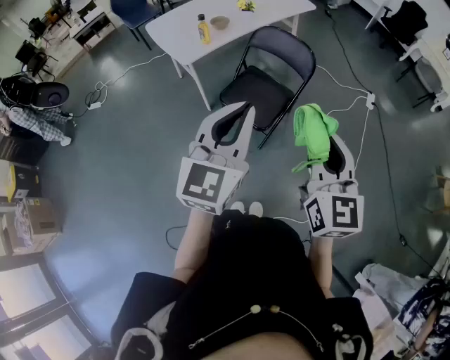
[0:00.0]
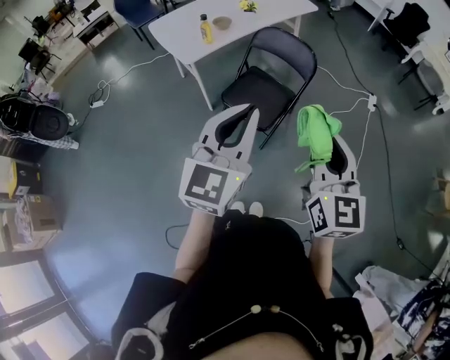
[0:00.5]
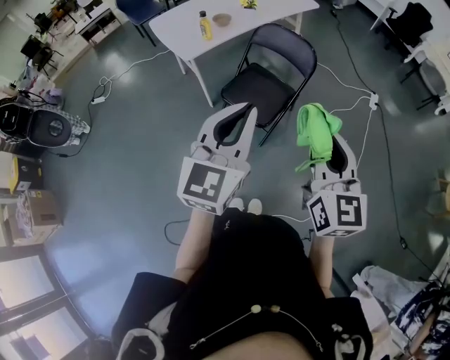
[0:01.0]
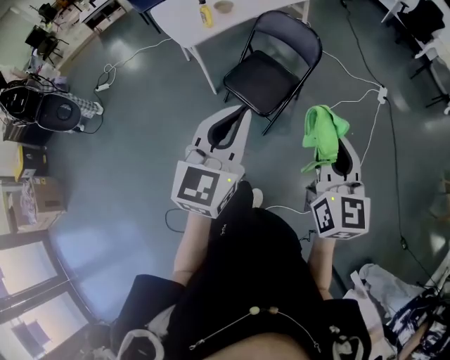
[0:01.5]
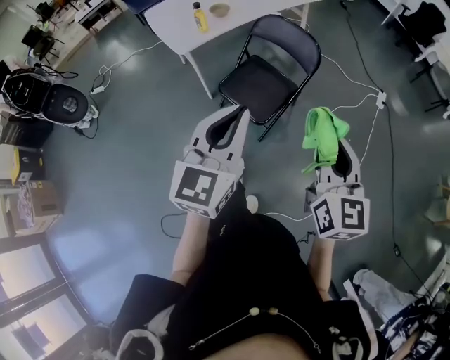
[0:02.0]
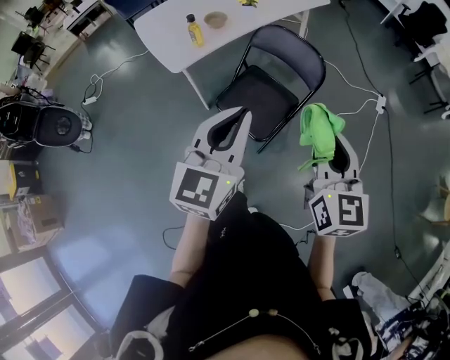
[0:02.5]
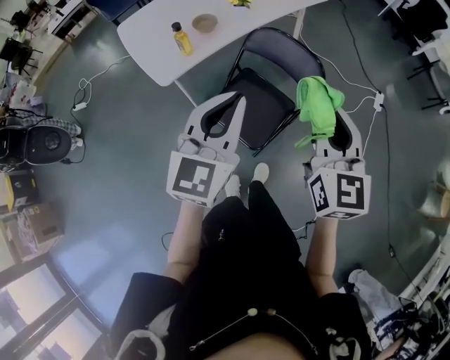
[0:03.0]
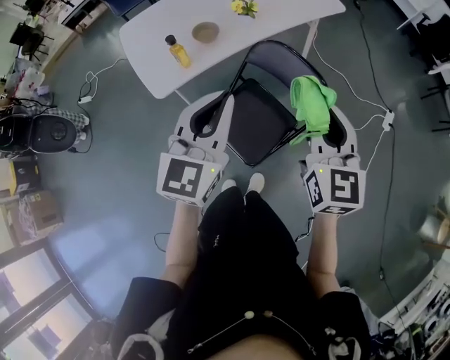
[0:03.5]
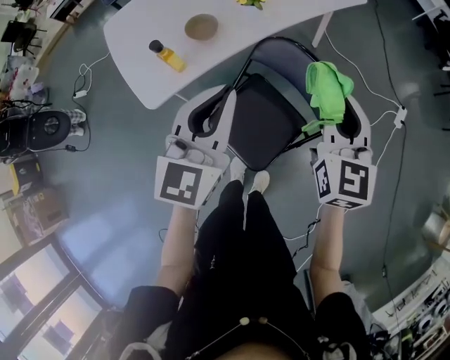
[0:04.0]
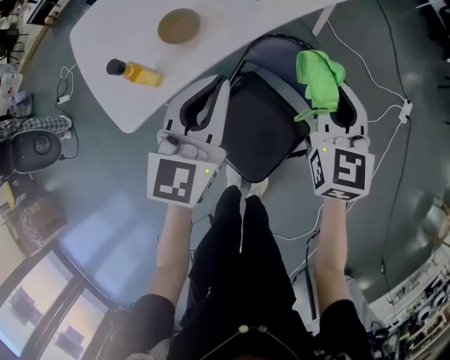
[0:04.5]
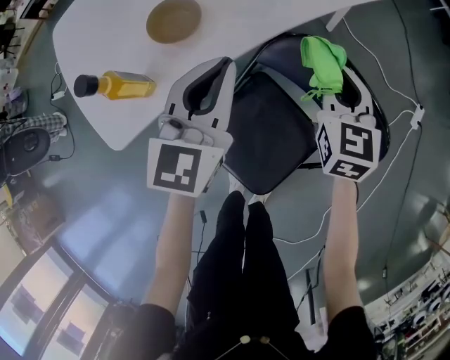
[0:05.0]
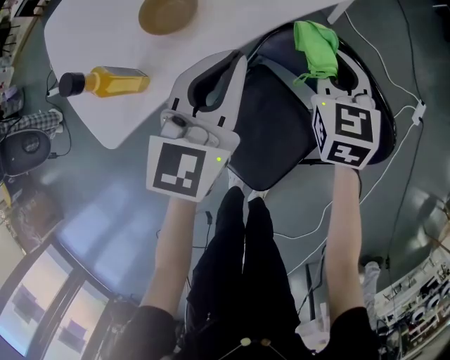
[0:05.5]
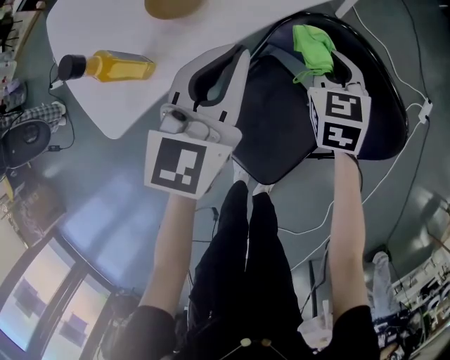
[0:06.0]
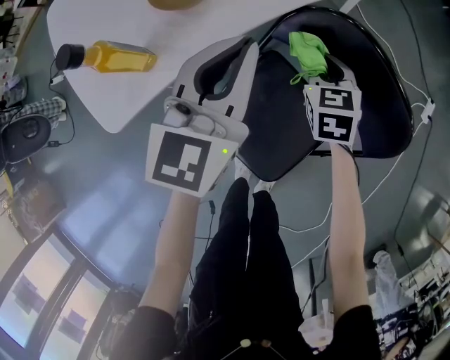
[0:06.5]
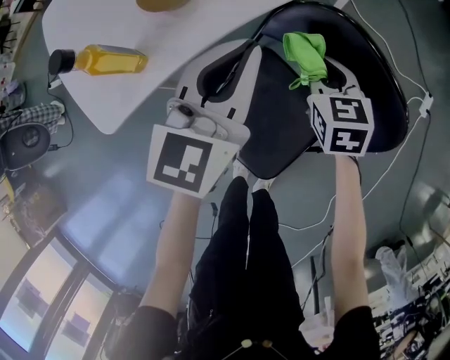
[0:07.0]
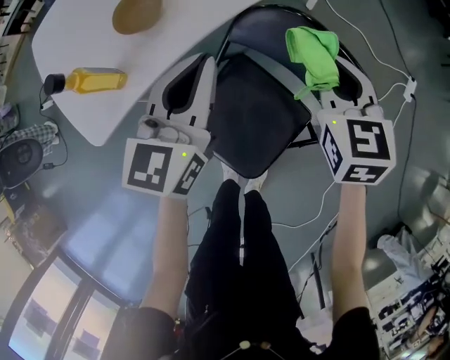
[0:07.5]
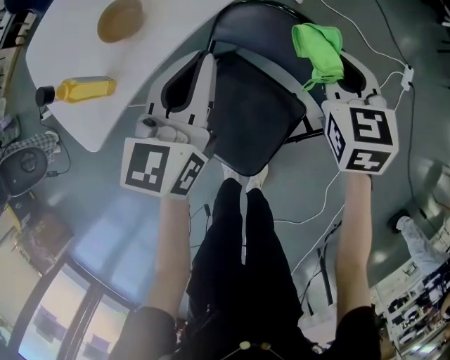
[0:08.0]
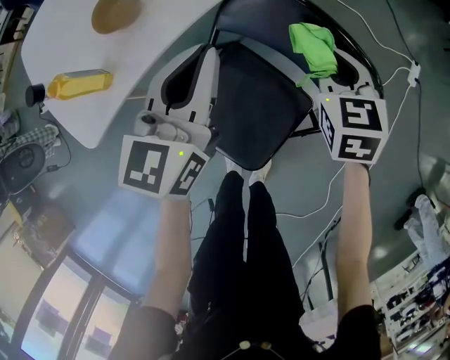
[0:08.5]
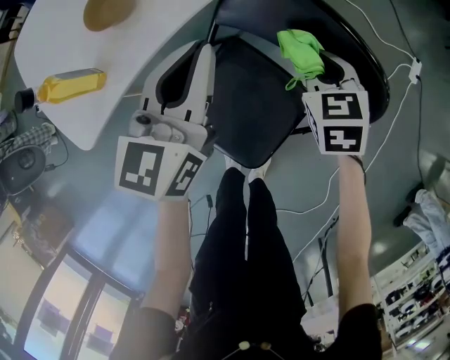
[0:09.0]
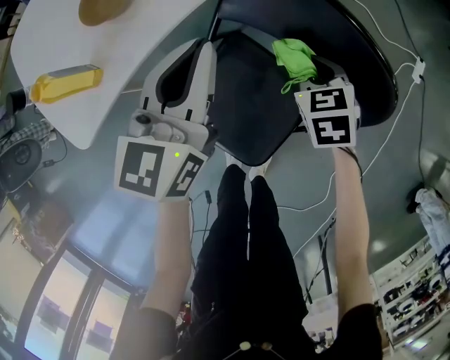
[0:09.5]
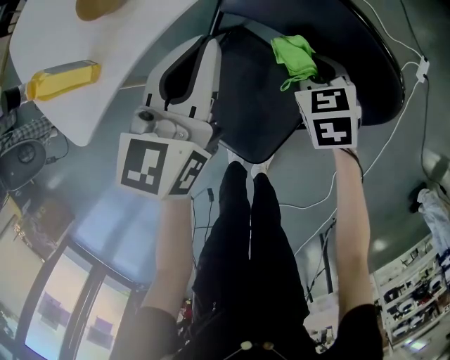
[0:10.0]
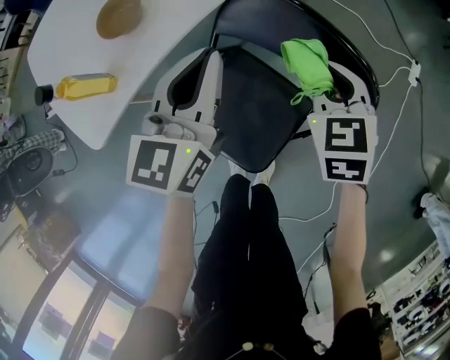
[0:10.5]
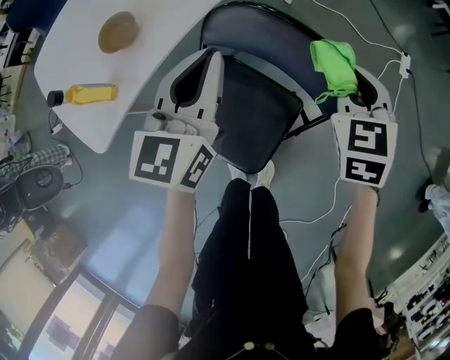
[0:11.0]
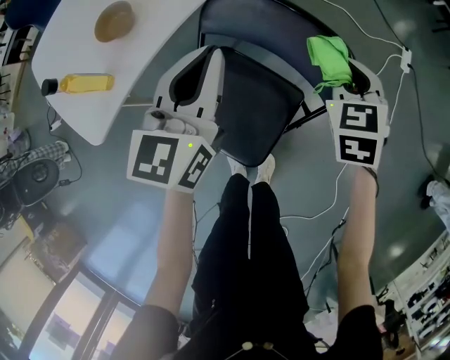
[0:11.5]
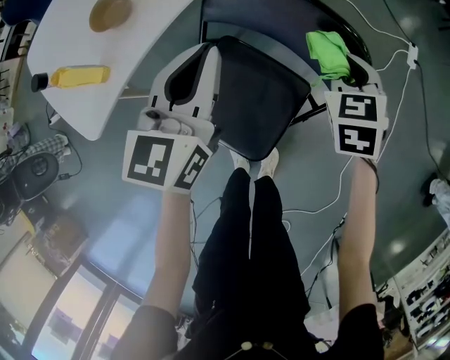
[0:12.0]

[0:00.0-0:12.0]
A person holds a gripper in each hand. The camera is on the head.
0:00.0 to 0:02.0: The left gripper changes place by about 5 cm. The right gripper travels to the right and forward by some 10 cm.
0:02.0 to 0:04.0: The two grippers travel together, forward, some 50 cm.
0:04.0 to 0:06.0: Both grippers move downward and forward, approximately 30 cm. The right gripper rotates about 30 degrees.
0:06.0 to 0:08.0: The left gripper is displaced to the right by some 5 cm. Meanwhile the right gripper shifts roughly 15 cm to the right and upward.
0:08.0 to 0:10.0: The right gripper goes roughly 15 cm downward, and rotates some 20 degrees.
0:10.0 to 0:12.0: The right gripper goes some 15 cm to the right and upward, while the left gripper travels to the right by some 5 cm.

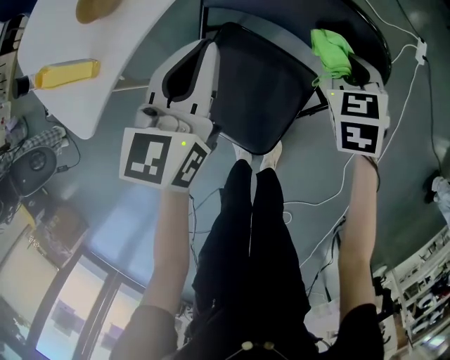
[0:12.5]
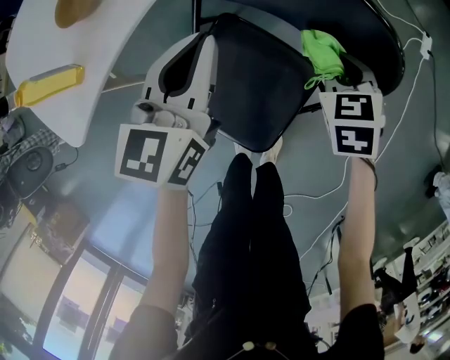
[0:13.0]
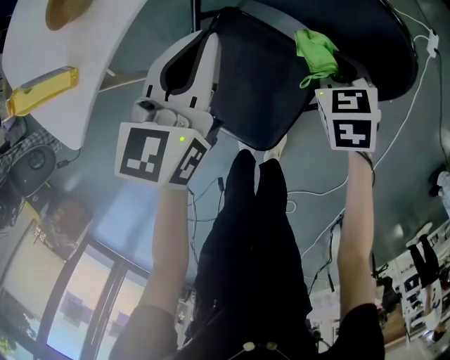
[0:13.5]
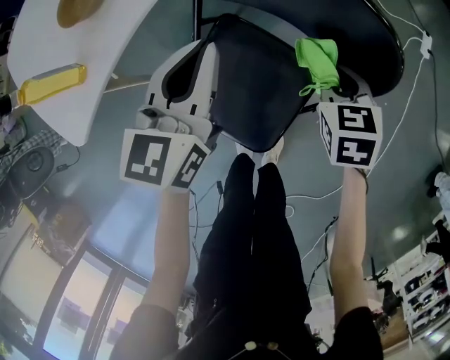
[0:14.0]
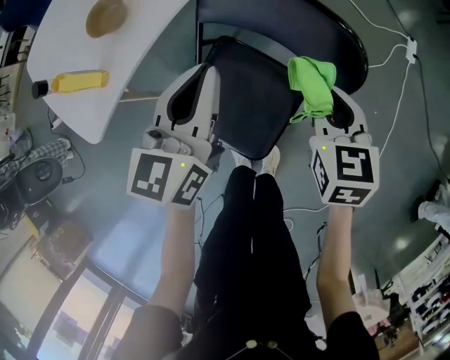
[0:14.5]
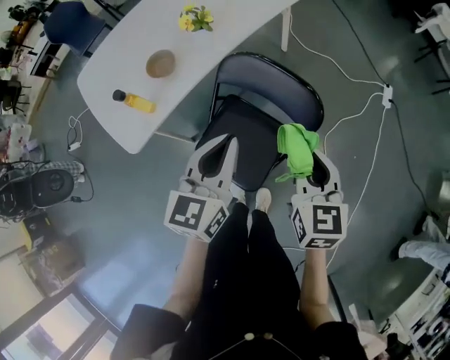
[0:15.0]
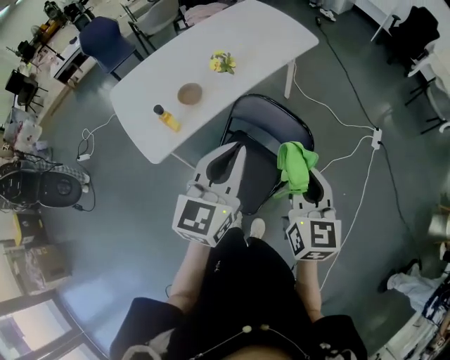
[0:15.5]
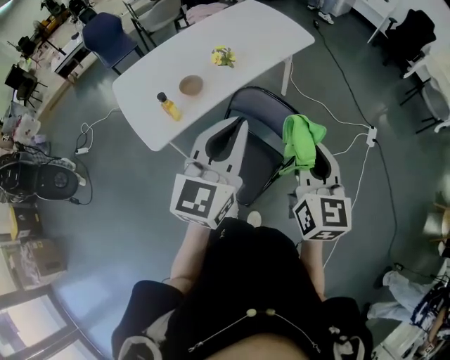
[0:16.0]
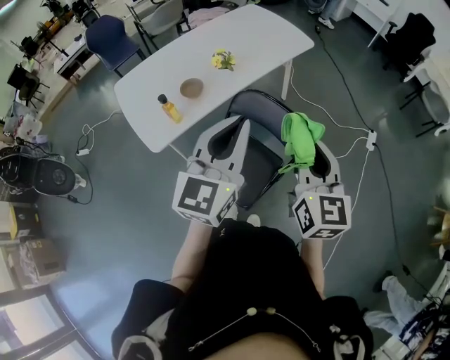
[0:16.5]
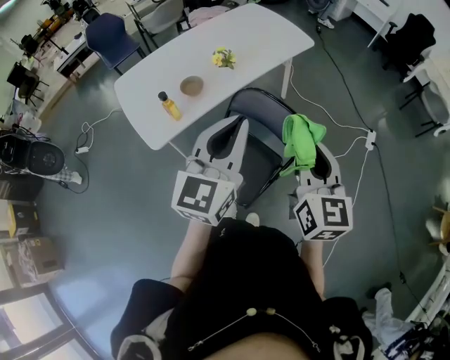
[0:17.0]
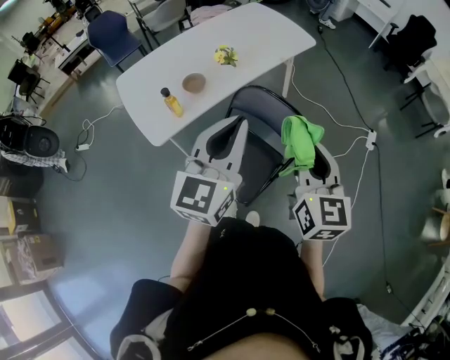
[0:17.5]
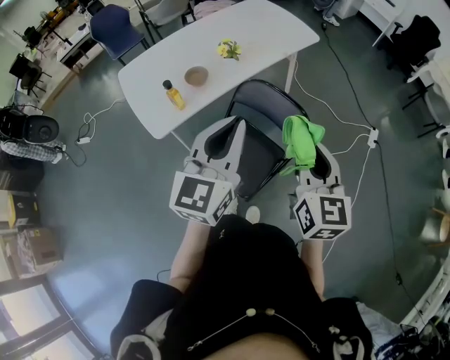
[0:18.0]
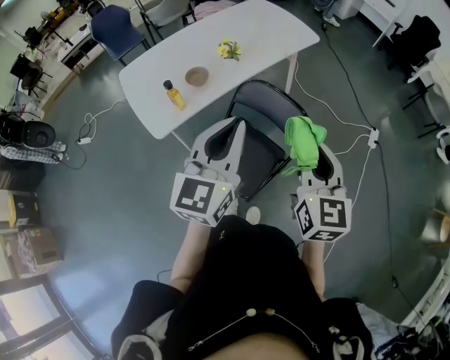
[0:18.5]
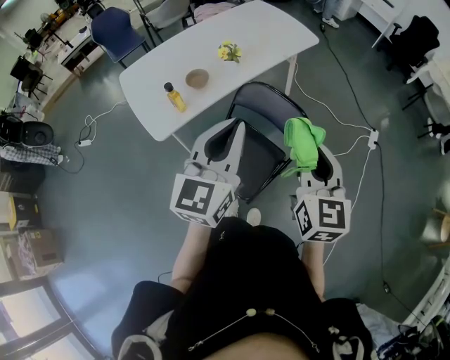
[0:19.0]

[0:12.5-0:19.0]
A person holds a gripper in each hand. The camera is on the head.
0:12.5 to 0:14.5: The right gripper heads upward and backward, covering about 10 cm, and swivels some 20 degrees.
0:14.5 to 0:17.0: The grippers both shift upward by roughly 35 cm. The left gripper turns by approximately 20 degrees, while the right gripper points its fingers roughly 30 degrees further upward.
0:17.0 to 0:19.0: There are only small adjustments of the grippers.

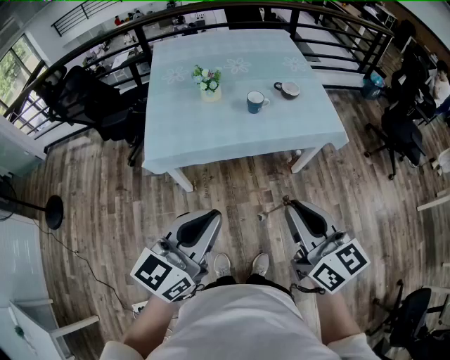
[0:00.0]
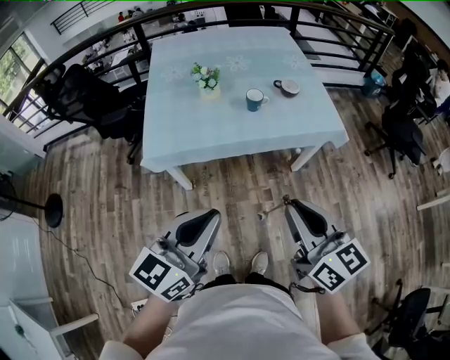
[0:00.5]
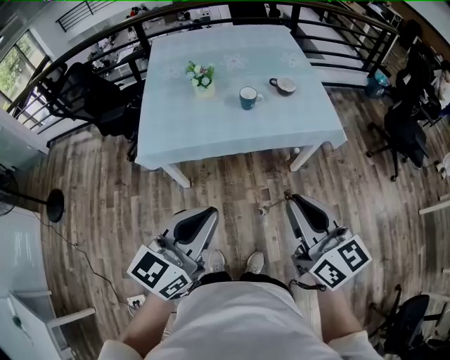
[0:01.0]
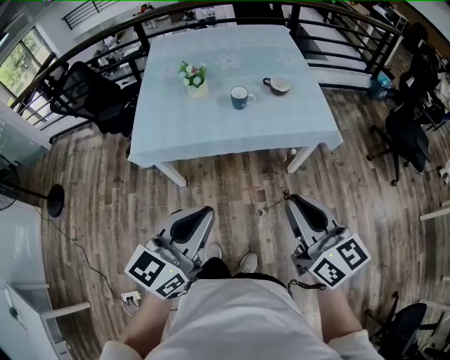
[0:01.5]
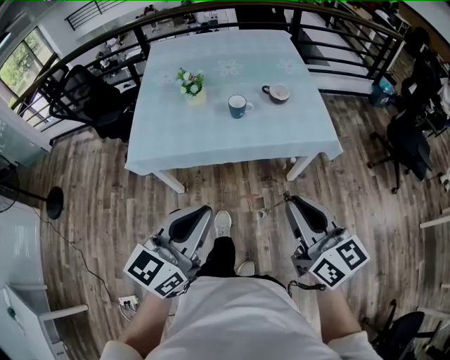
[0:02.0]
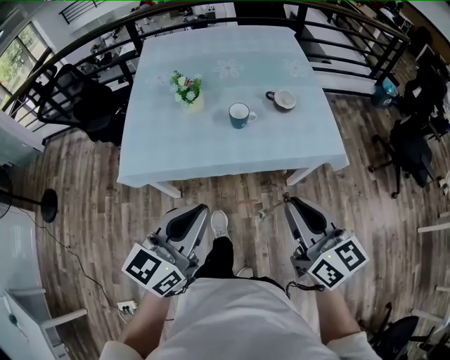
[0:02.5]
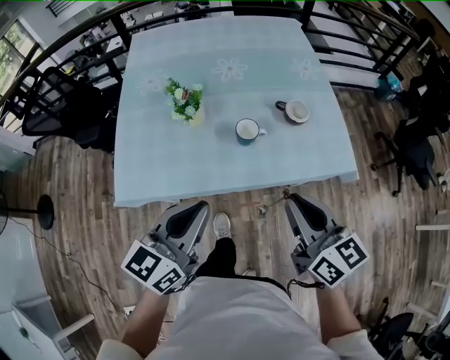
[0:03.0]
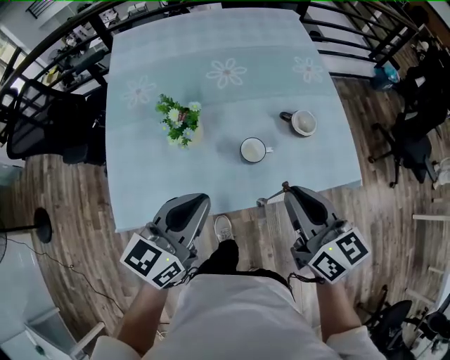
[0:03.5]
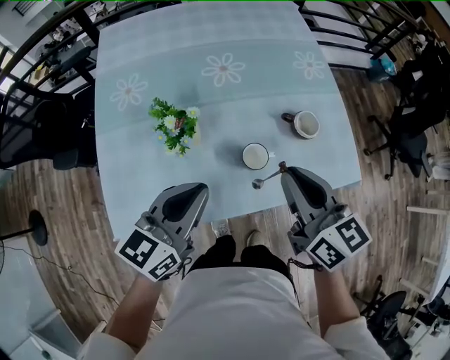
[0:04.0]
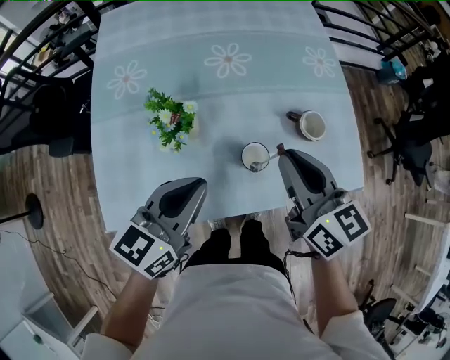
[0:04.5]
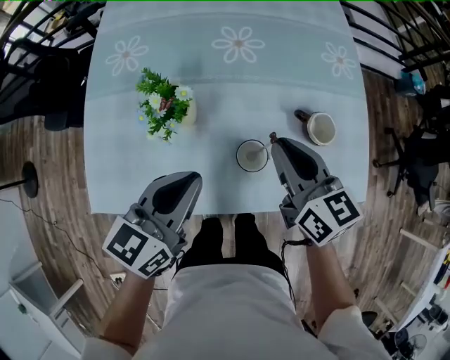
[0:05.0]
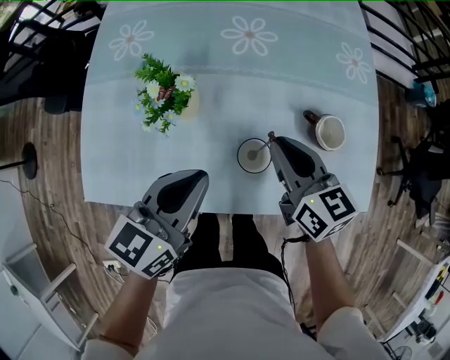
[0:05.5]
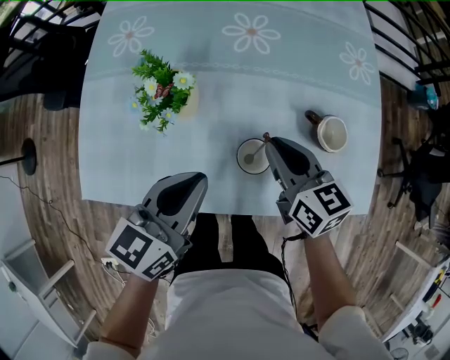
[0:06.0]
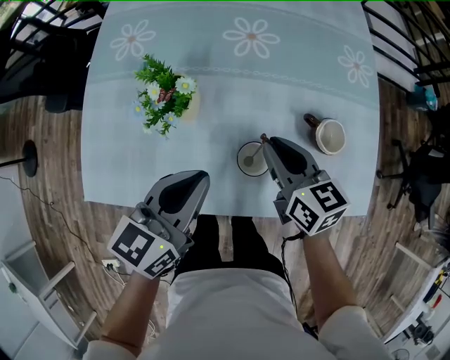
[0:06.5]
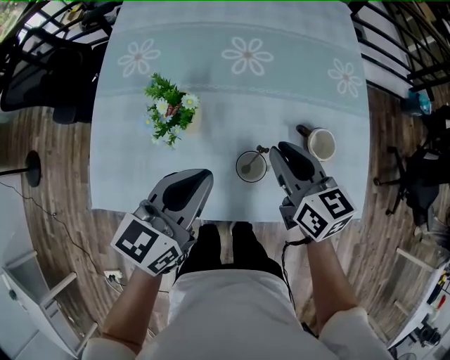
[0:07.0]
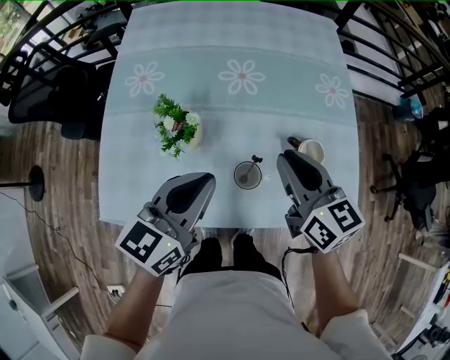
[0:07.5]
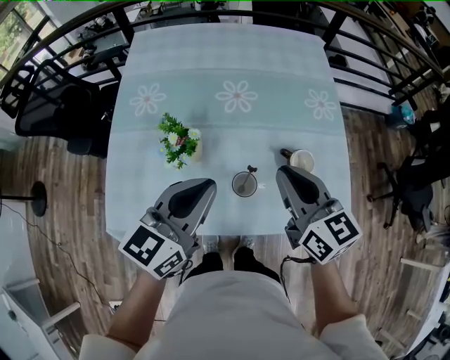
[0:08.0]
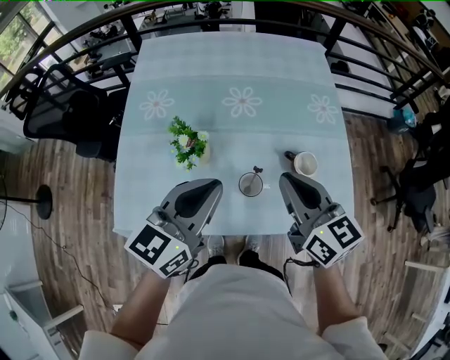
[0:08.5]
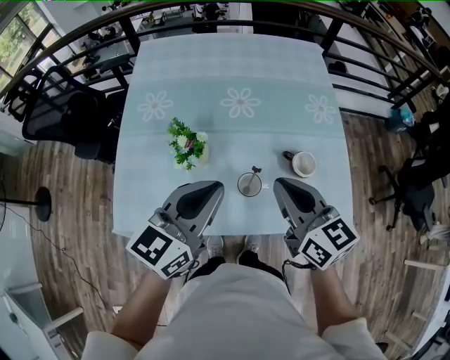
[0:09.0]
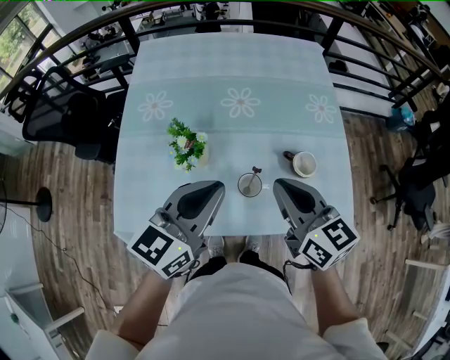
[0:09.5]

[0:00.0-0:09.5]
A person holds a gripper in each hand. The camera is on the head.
0:00.0 to 0:02.0: Both grippers move to the right and forward, about 15 cm.
0:02.0 to 0:04.0: The two grippers travel together, forward, approximately 40 cm.
0:04.0 to 0:05.5: The left gripper heads downward, covering roughly 10 cm. The right gripper moves downward and forward, roughly 15 cm.
0:05.5 to 0:07.5: Both grippers move upward, approximately 10 cm.
0:07.5 to 0:09.5: The left gripper heads upward, covering about 5 cm. The right gripper moves backward and upward, approximately 10 cm.
